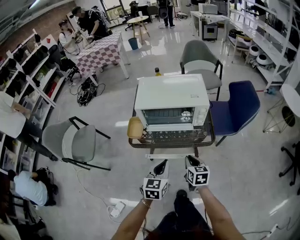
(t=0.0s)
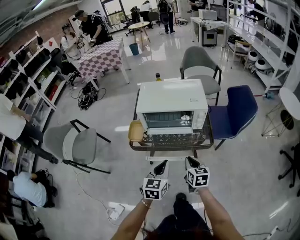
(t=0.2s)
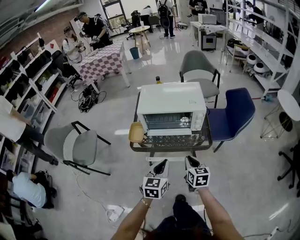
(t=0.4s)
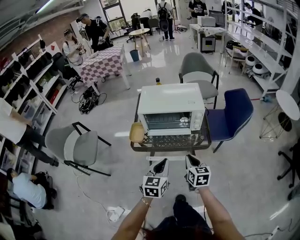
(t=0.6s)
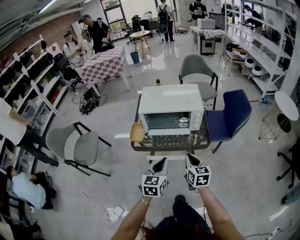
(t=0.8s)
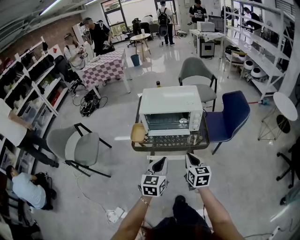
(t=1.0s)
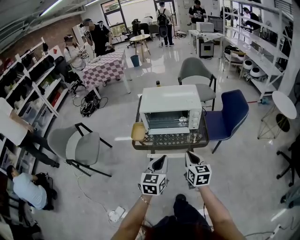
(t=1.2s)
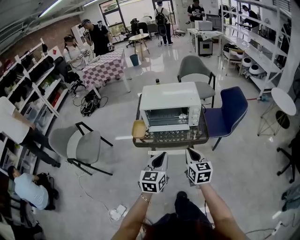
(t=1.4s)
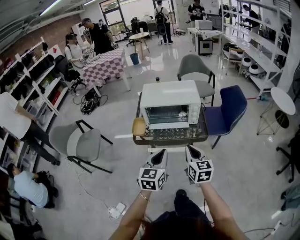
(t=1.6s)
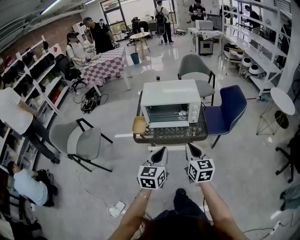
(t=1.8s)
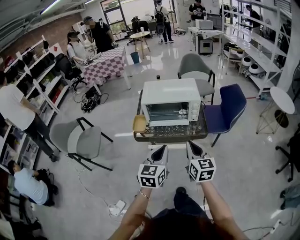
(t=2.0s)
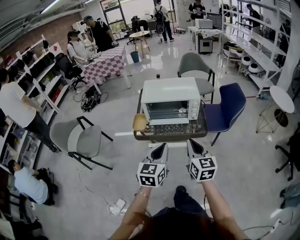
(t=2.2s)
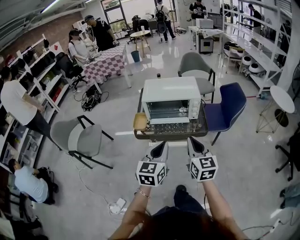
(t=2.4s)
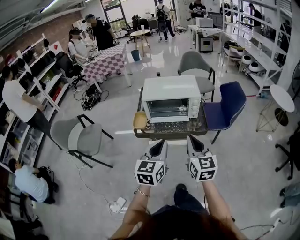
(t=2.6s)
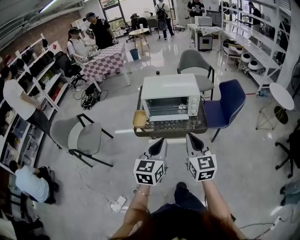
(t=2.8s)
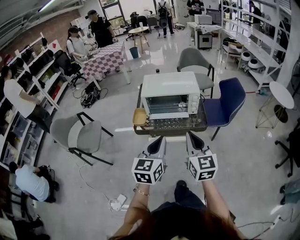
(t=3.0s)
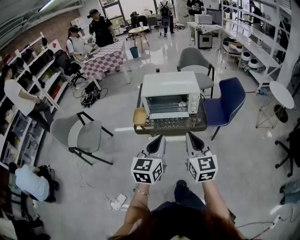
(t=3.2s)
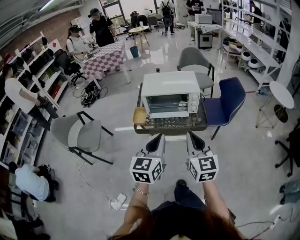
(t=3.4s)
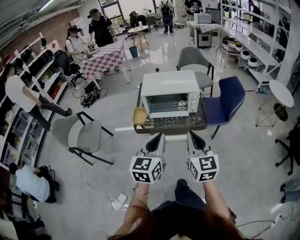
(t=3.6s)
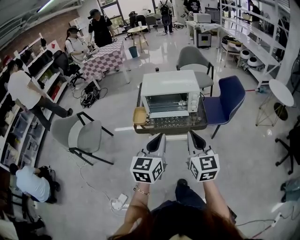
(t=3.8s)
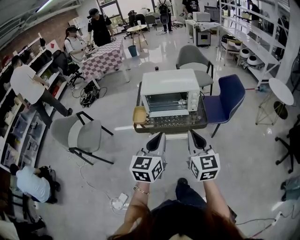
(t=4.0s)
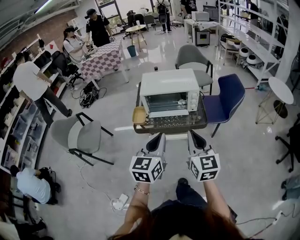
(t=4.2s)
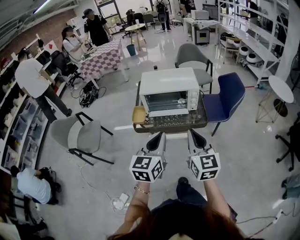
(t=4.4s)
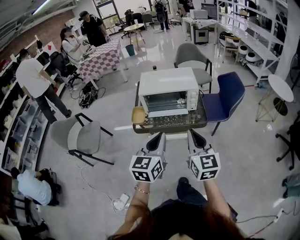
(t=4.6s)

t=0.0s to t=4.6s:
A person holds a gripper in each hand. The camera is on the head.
t=0.0s to t=1.6s: Both grippers travel together upward and backward, approximately 15 cm. The right gripper turns by roughly 20 degrees.
t=1.6s to t=3.0s: The left gripper is displaced upward by about 10 cm. Meanwhile the right gripper moves upward and backward, some 10 cm.
t=3.0s to t=4.6s: The grippers move only a little.

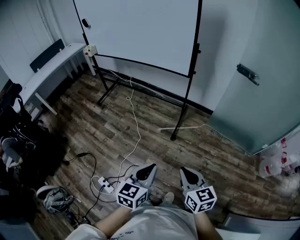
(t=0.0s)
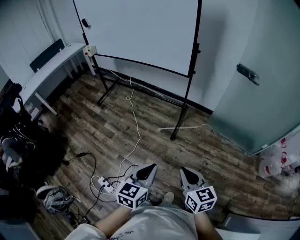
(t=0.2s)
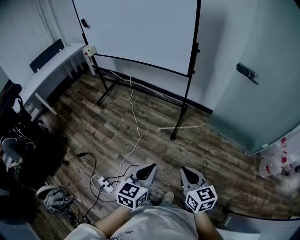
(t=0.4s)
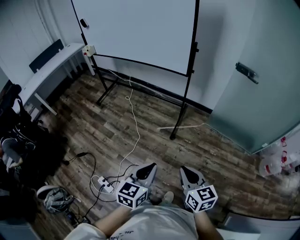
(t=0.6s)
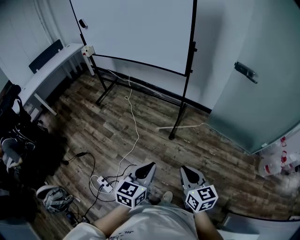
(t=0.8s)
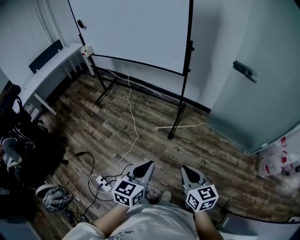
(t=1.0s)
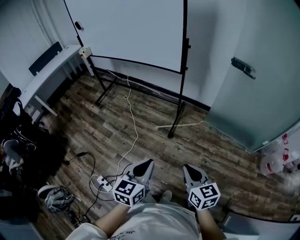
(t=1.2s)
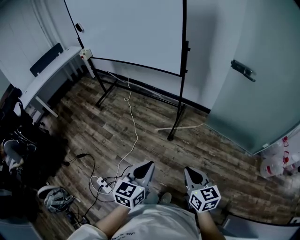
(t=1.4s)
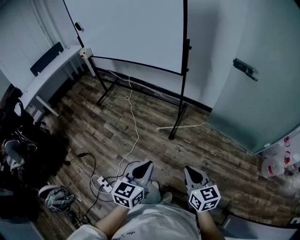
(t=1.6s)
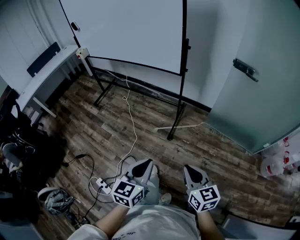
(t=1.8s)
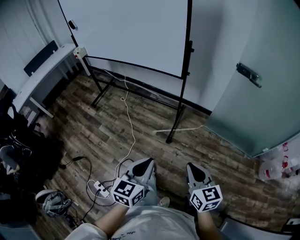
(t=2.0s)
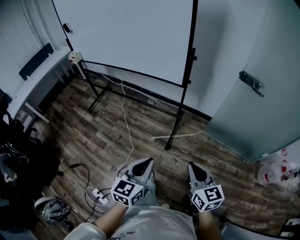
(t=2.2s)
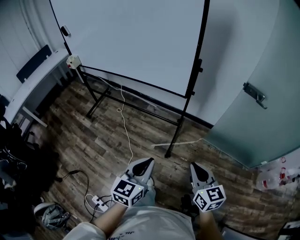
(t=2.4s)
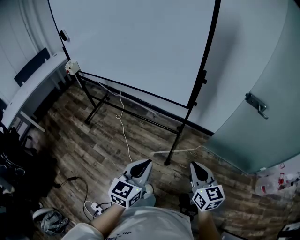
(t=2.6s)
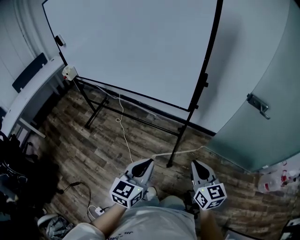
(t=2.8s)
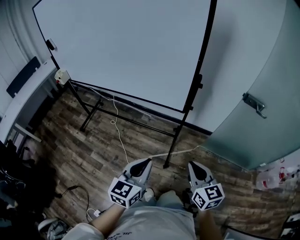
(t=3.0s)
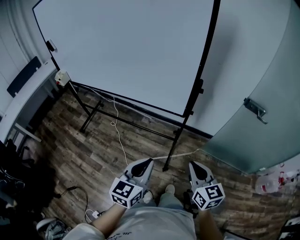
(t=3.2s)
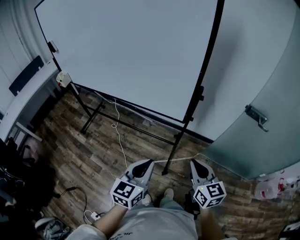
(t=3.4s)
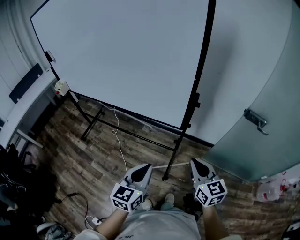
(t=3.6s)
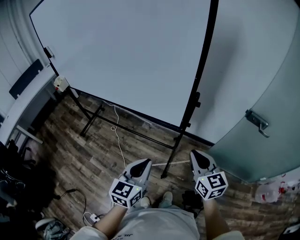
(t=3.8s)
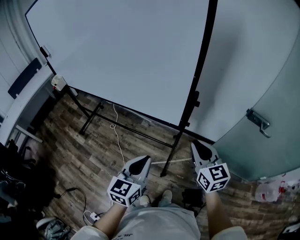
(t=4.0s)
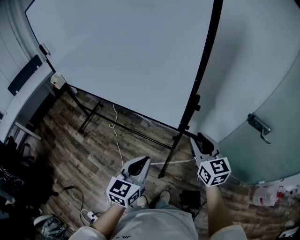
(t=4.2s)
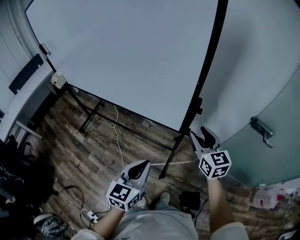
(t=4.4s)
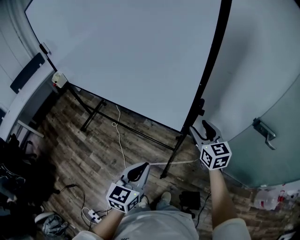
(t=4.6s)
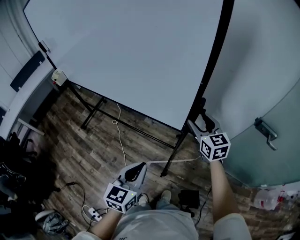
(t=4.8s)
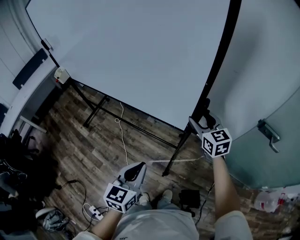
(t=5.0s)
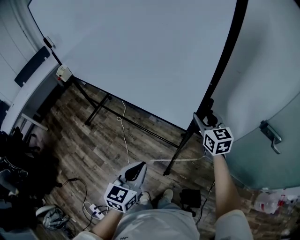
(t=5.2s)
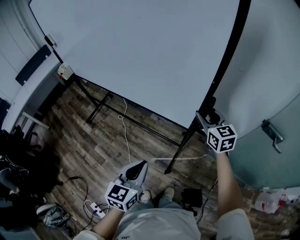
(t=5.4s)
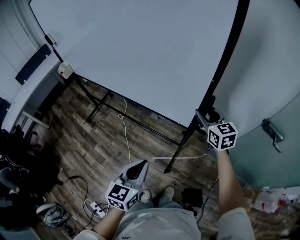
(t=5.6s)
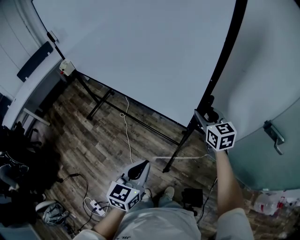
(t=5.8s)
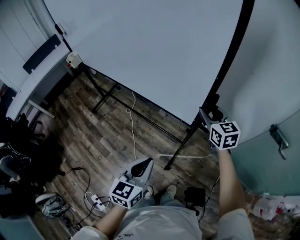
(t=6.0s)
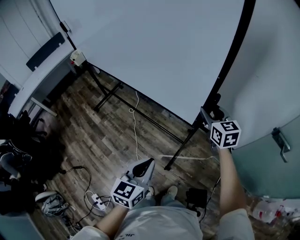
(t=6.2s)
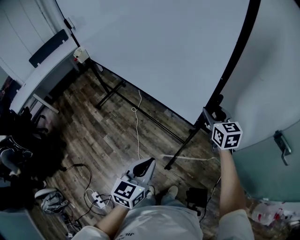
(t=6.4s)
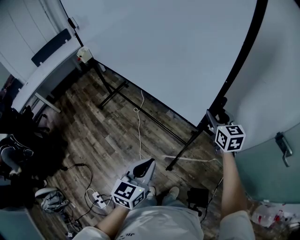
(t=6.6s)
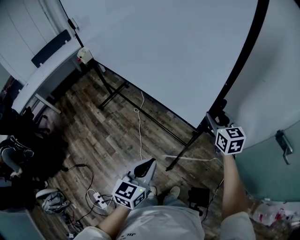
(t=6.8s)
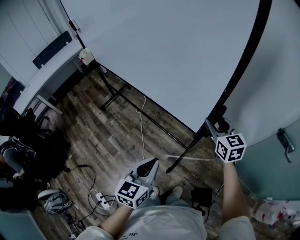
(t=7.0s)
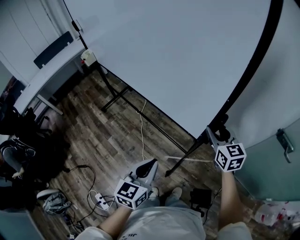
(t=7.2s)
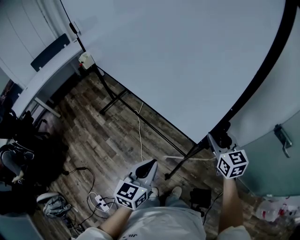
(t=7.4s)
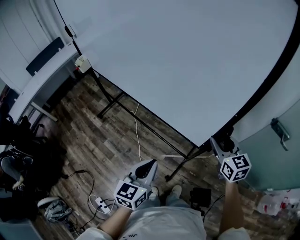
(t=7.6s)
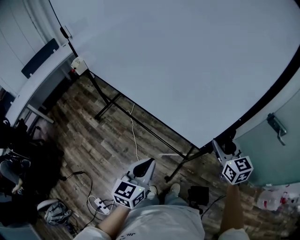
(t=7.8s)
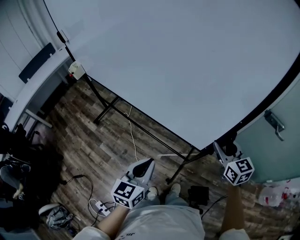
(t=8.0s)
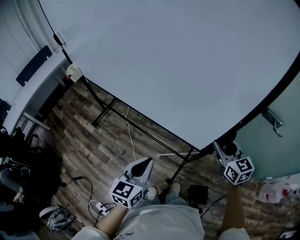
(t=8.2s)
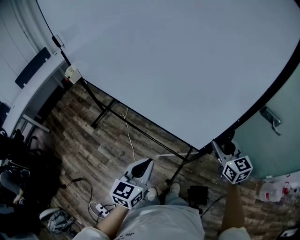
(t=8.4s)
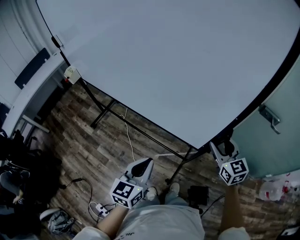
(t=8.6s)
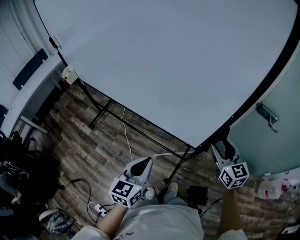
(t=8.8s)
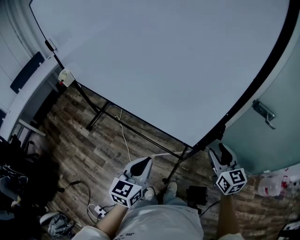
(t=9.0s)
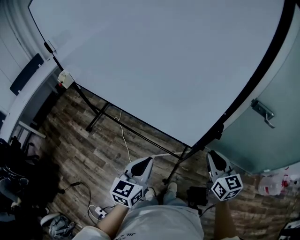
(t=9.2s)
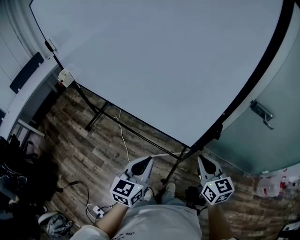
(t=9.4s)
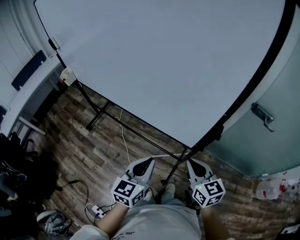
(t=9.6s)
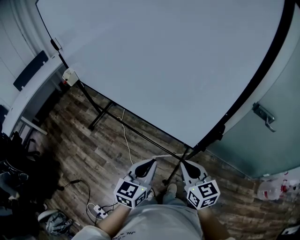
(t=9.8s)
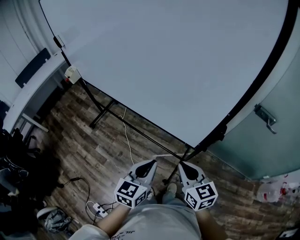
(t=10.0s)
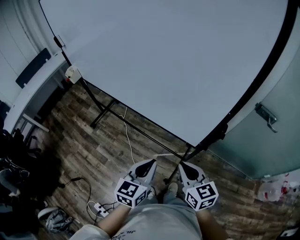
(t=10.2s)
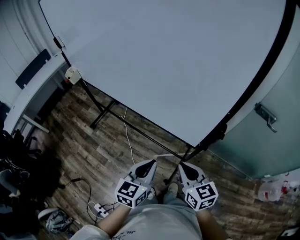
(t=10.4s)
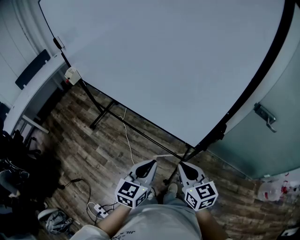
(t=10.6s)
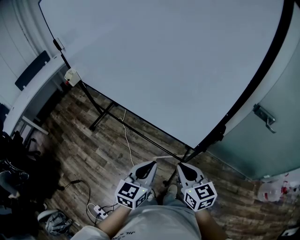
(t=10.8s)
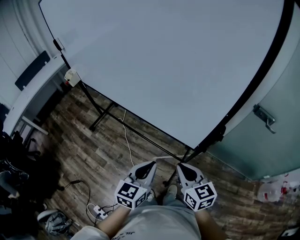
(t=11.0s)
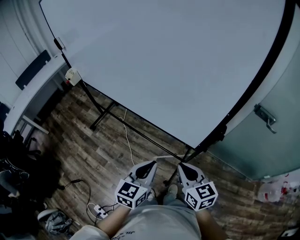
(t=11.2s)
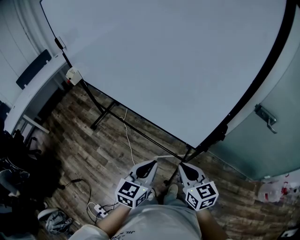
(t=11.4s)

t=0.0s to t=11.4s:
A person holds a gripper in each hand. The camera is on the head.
t=0.0s to t=1.4s: Both grippers travel together to the right, roughly 10 cm.
t=1.4s to t=2.8s: Both grippers move forward, some 35 cm.
t=2.8s to t=4.2s: The right gripper heads forward, covering approximately 25 cm, and opens its fingers, while the left gripper heads forward, covering some 15 cm.
t=4.2s to t=5.6s: The right gripper heads forward, covering approximately 15 cm.
t=5.6s to t=7.2s: The left gripper moves to the left, roughly 5 cm. Meanwhile the right gripper is displaced backward and to the left by roughly 10 cm.
t=7.2s to t=8.6s: The right gripper goes some 15 cm backward and to the right.
t=8.6s to t=10.0s: The right gripper shifts approximately 15 cm to the left and backward, and closes.
t=10.0s to t=11.4s: The two grippers keep their place.

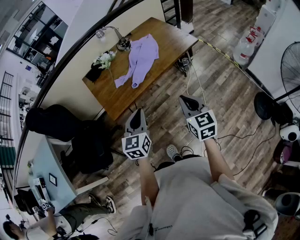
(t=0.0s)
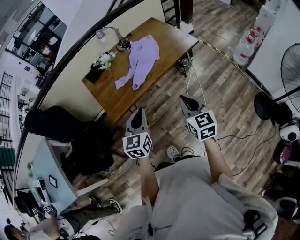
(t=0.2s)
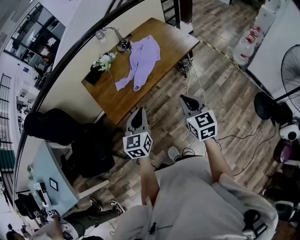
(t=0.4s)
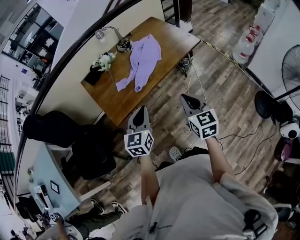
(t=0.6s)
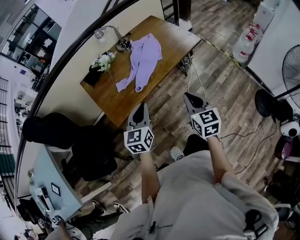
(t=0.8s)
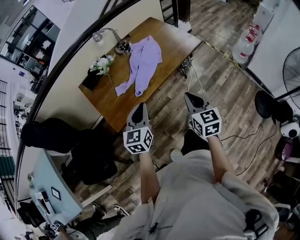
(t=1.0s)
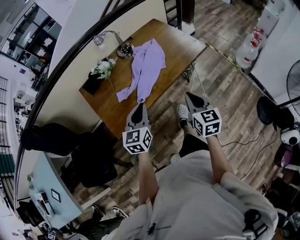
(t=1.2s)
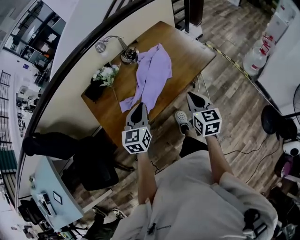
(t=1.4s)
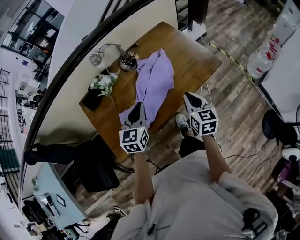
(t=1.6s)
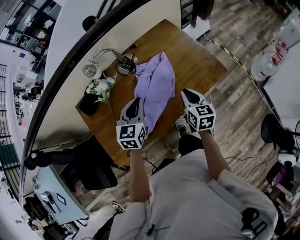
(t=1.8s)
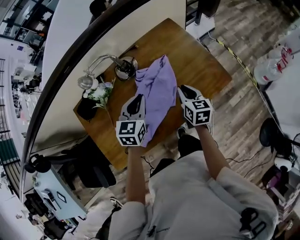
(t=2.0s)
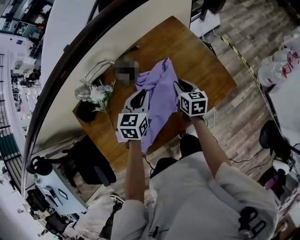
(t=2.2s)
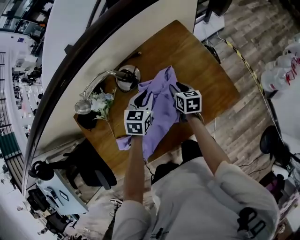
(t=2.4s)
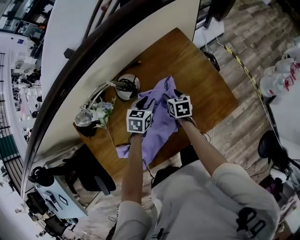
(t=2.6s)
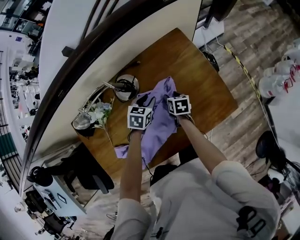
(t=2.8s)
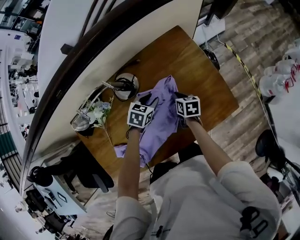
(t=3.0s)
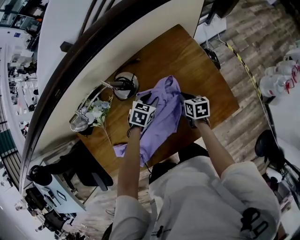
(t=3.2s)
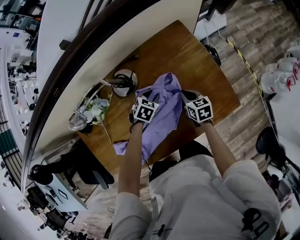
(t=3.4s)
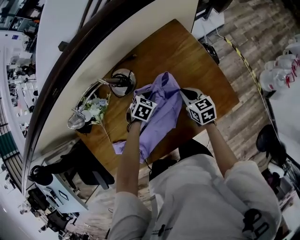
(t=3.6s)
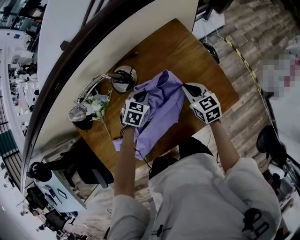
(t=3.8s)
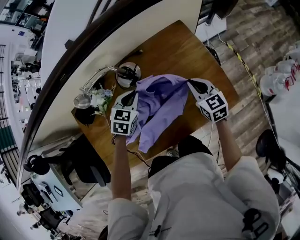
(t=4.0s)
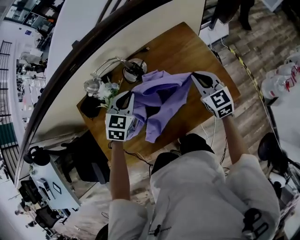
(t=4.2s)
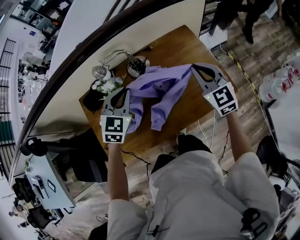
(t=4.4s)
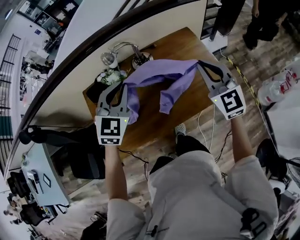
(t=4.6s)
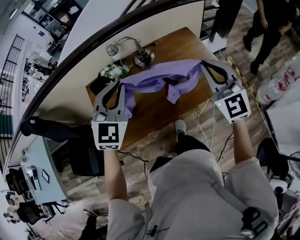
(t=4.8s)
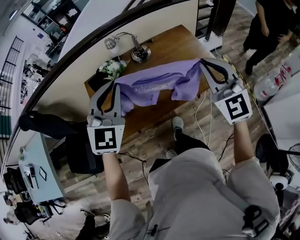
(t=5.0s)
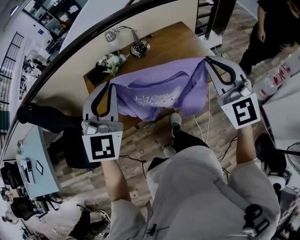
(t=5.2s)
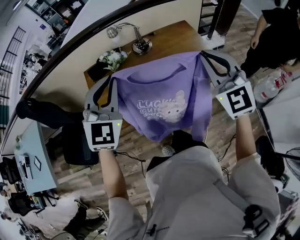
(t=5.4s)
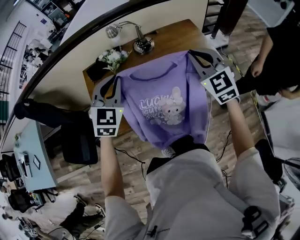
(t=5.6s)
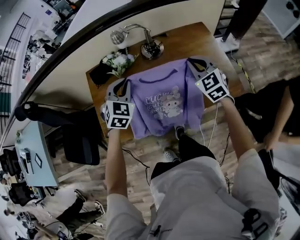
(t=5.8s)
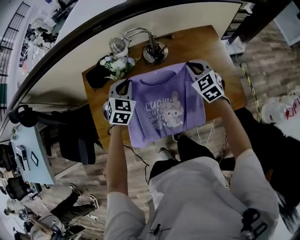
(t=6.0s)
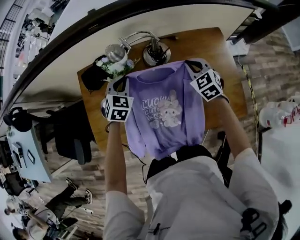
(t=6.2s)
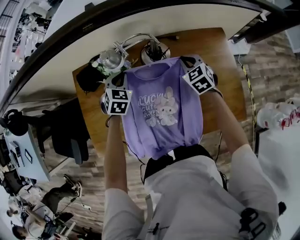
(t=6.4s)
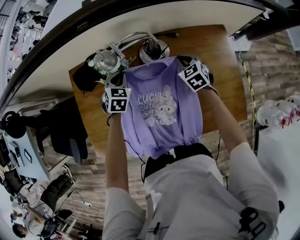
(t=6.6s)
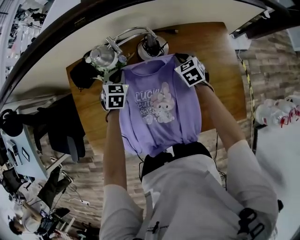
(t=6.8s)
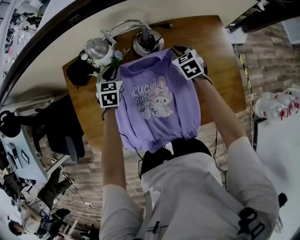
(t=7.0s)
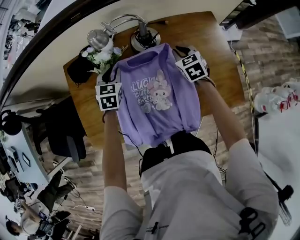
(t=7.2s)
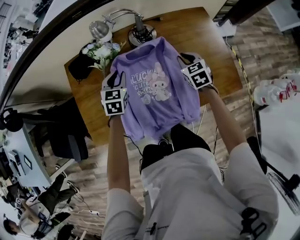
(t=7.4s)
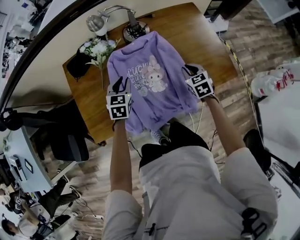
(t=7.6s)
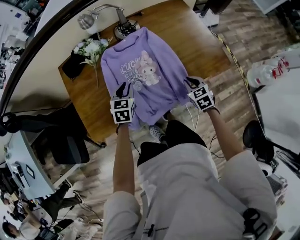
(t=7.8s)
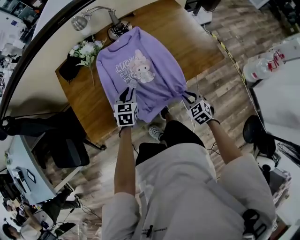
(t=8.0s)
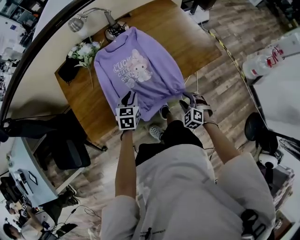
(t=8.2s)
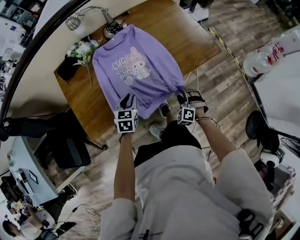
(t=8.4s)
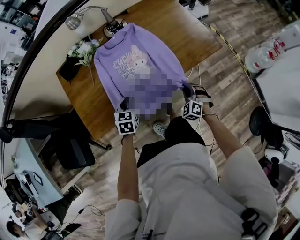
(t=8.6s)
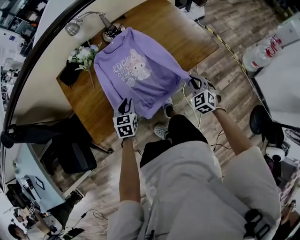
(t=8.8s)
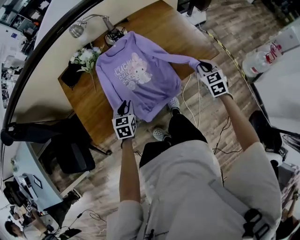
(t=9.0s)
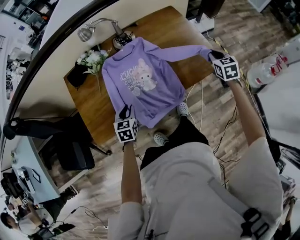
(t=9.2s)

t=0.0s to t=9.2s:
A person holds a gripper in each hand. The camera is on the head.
t=0.0s to t=1.6s: Both grippers travel together forward, some 35 cm.
t=1.6s to t=3.0s: Both grippers move forward and downward, approximately 40 cm. The left gripper points its fingers approximately 30 degrees further downward, and opens its fingers. Meanwhile the right gripper turns by about 30 degrees, and opens and closes again.
t=3.0s to t=4.6s: The two grippers go about 40 cm upward and backward. The left gripper tilts its fingers approximately 30 degrees upward, and closes its fingers. The right gripper rolls counterclockwise, seen from behind, by roughly 60 degrees.
t=4.6s to t=6.2s: The two grippers go approximately 30 cm downward and forward. The left gripper turns by some 30 degrees. The right gripper rotates about 30 degrees.
t=6.2s to t=7.6s: Both grippers travel together backward and downward, roughly 20 cm. The right gripper turns by some 30 degrees.
t=7.6s to t=9.2s: The left gripper heads backward, covering approximately 15 cm, while the right gripper heads to the right and upward, covering about 25 cm, reaches some 25 cm backward, then returns, and opens and closes again.
